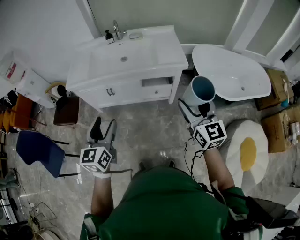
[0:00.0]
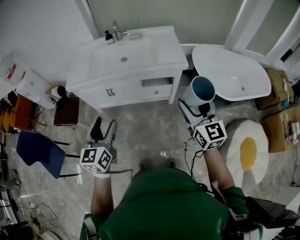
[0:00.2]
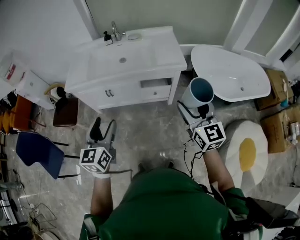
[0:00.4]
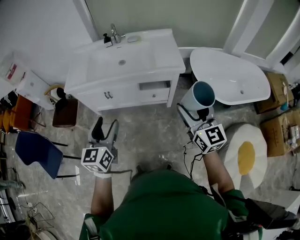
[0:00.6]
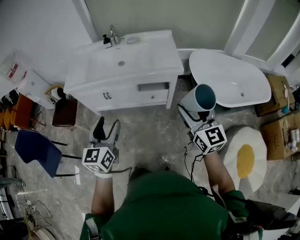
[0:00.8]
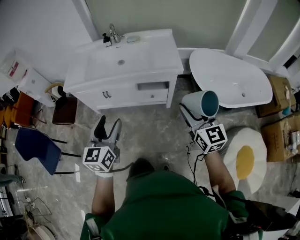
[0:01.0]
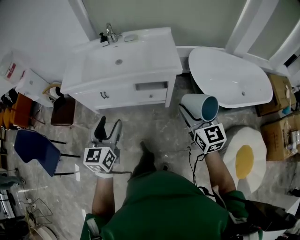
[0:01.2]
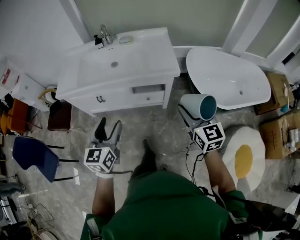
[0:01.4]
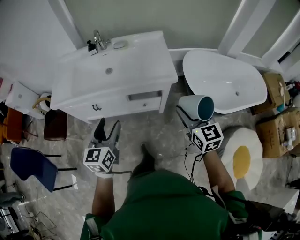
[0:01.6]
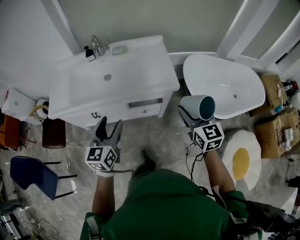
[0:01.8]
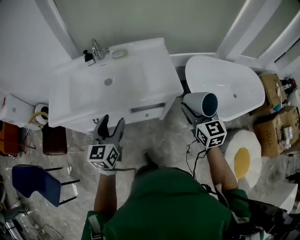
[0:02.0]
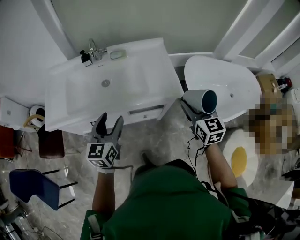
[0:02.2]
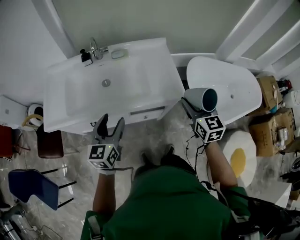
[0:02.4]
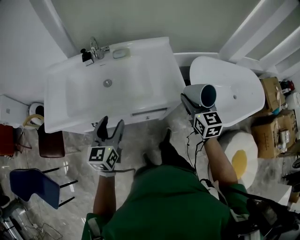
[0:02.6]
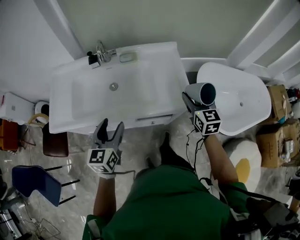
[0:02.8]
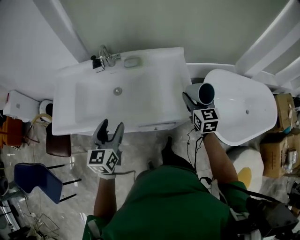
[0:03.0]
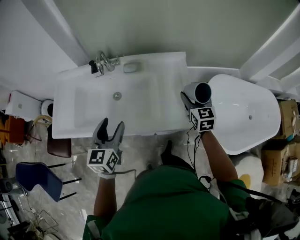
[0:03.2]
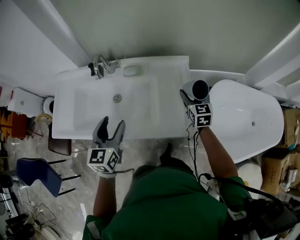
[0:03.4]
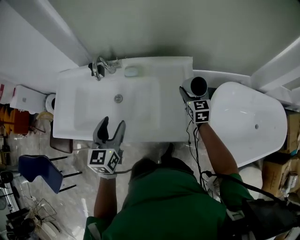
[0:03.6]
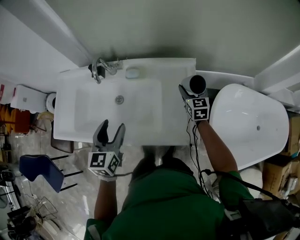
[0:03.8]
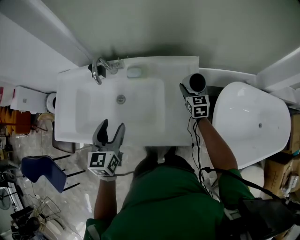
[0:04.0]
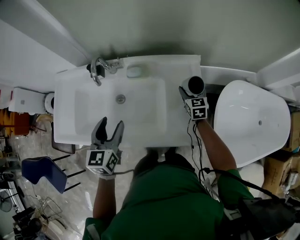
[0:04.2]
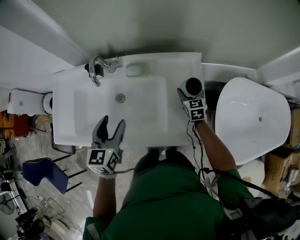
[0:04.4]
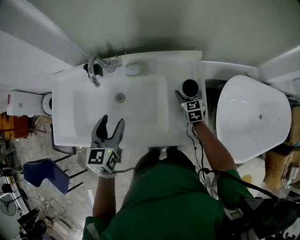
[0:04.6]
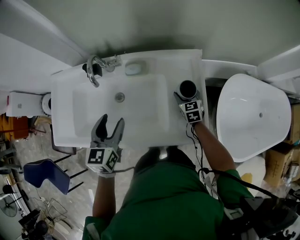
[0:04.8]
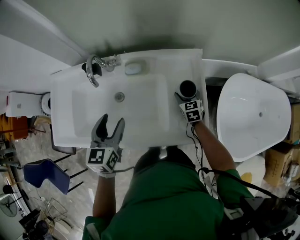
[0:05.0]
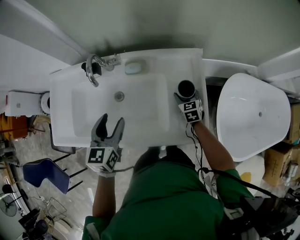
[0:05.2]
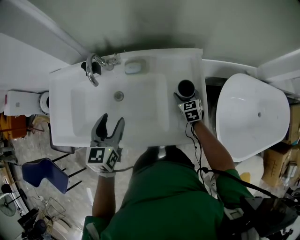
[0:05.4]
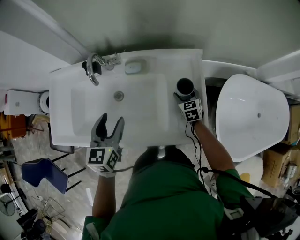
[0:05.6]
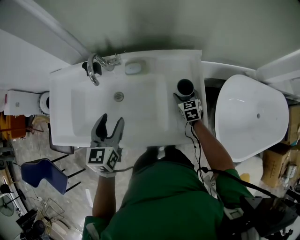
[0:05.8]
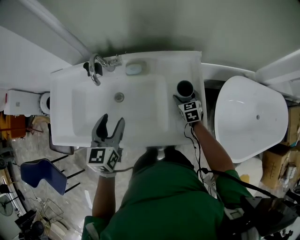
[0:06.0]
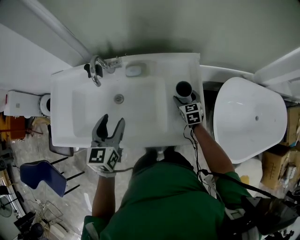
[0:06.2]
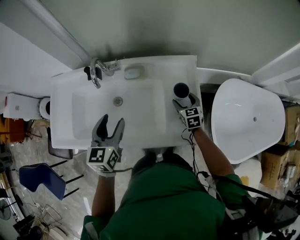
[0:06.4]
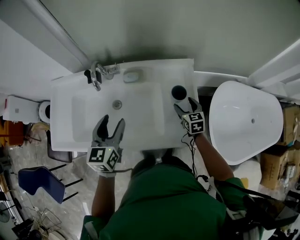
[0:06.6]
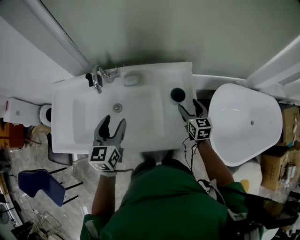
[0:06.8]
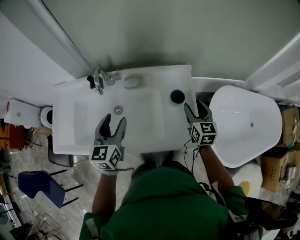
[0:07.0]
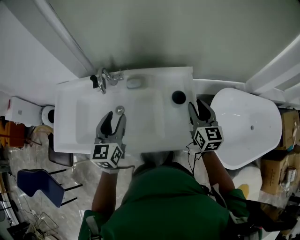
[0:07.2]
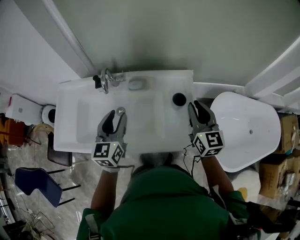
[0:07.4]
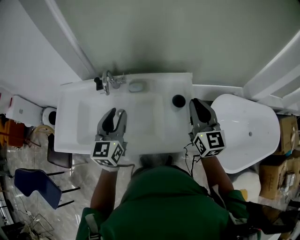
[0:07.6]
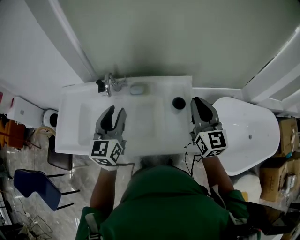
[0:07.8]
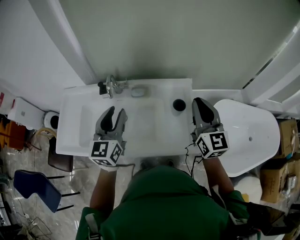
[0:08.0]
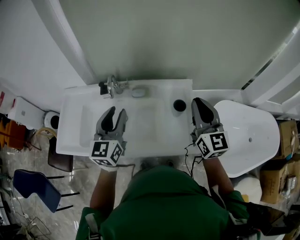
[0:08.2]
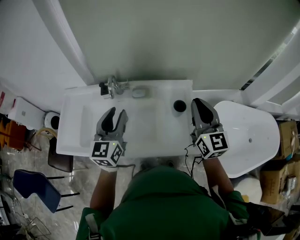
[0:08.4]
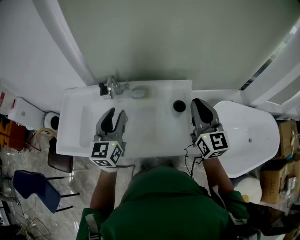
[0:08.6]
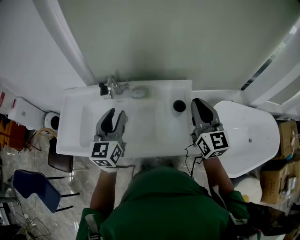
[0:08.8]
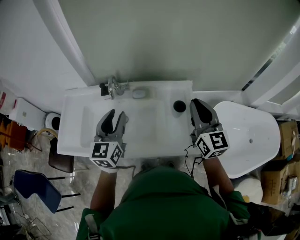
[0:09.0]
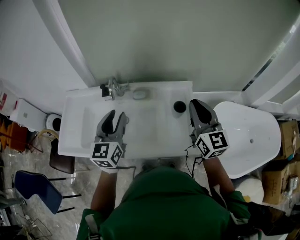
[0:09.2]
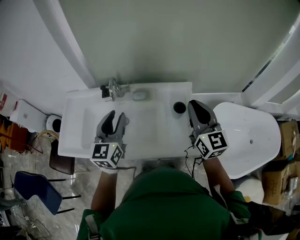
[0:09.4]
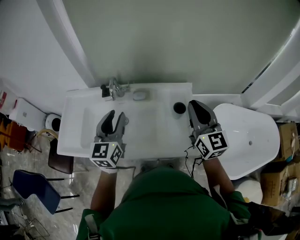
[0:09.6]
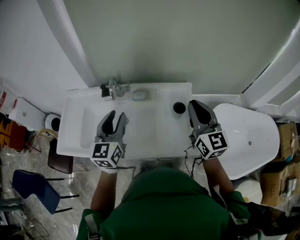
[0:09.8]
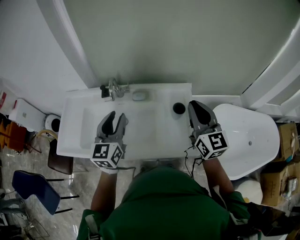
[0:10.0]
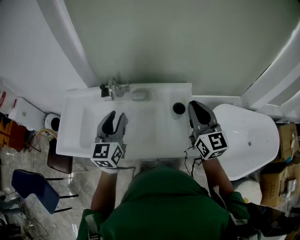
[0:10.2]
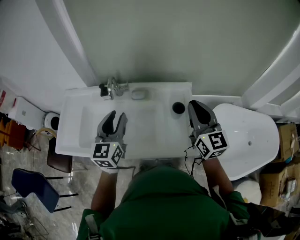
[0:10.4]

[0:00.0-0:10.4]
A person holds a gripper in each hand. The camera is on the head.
0:00.0 to 0:01.4: Both grippers travel together to the right and forward, approximately 15 cm.
0:01.4 to 0:03.0: Both grippers move forward, some 40 cm.
0:03.0 to 0:04.4: The left gripper shifts some 20 cm forward. The right gripper travels forward and downward by some 30 cm.
0:04.4 to 0:06.0: The right gripper changes place by roughly 5 cm.
0:06.0 to 0:07.4: The right gripper goes about 30 cm upward, tips its fingers upward by some 30 degrees, and closes. Meanwhile the left gripper goes some 10 cm upward.
0:07.4 to 0:09.0: Both grippers travel together upward, some 5 cm.
0:09.0 to 0:10.4: Both grippers stay put.

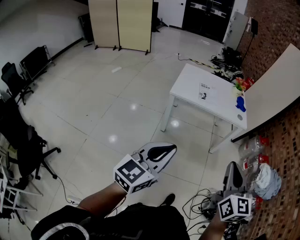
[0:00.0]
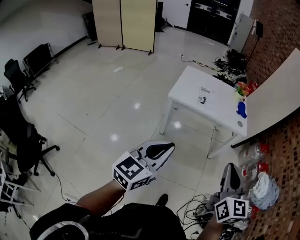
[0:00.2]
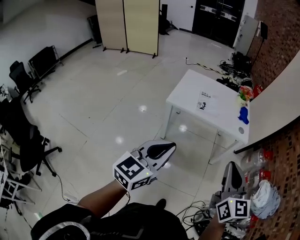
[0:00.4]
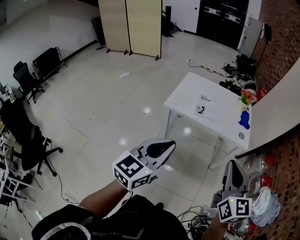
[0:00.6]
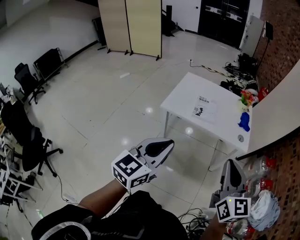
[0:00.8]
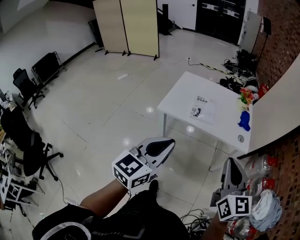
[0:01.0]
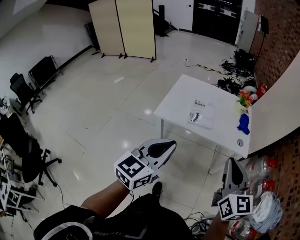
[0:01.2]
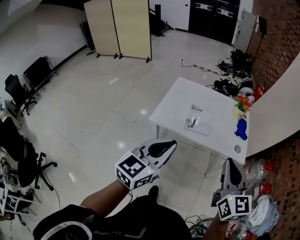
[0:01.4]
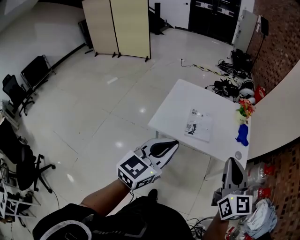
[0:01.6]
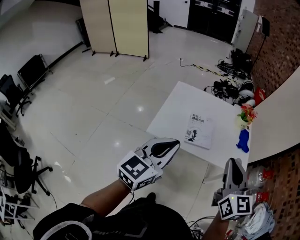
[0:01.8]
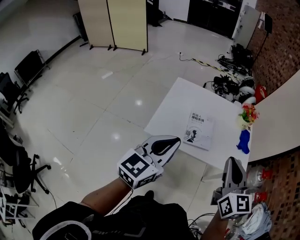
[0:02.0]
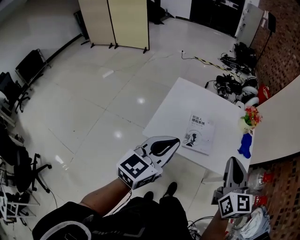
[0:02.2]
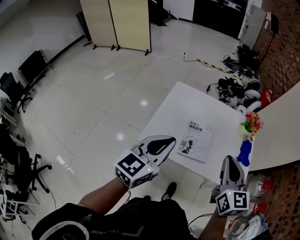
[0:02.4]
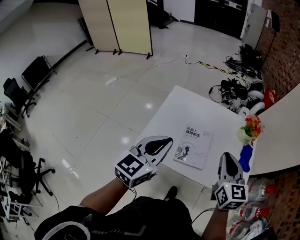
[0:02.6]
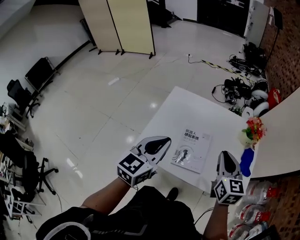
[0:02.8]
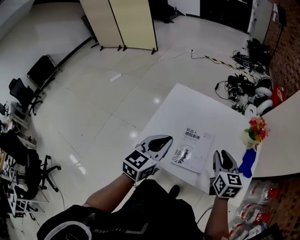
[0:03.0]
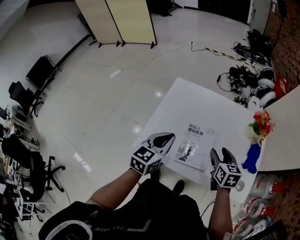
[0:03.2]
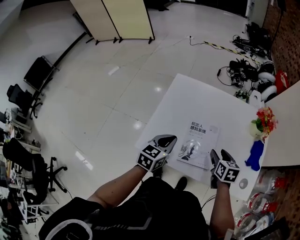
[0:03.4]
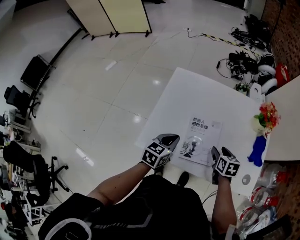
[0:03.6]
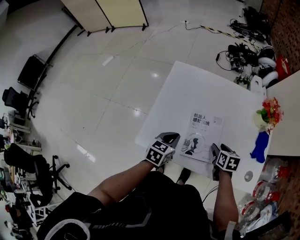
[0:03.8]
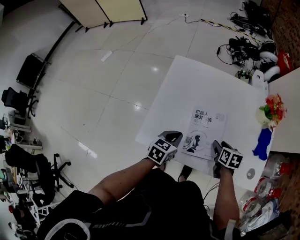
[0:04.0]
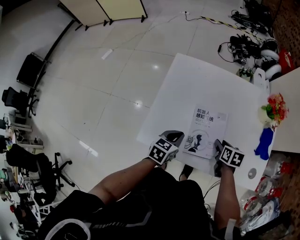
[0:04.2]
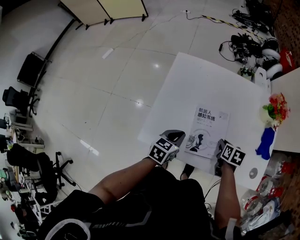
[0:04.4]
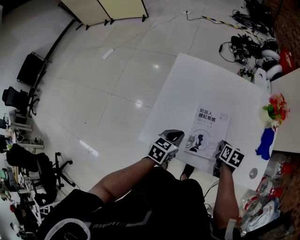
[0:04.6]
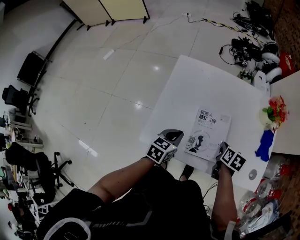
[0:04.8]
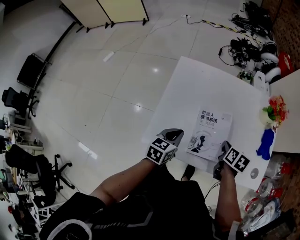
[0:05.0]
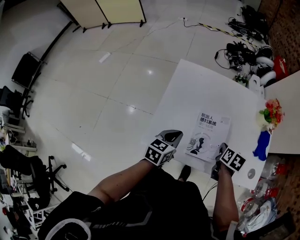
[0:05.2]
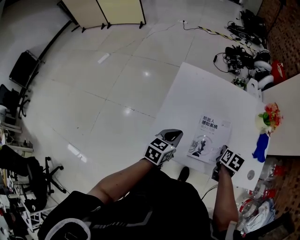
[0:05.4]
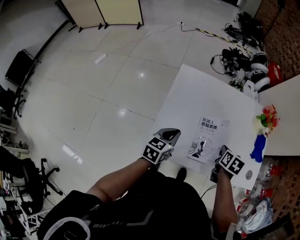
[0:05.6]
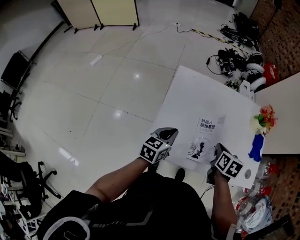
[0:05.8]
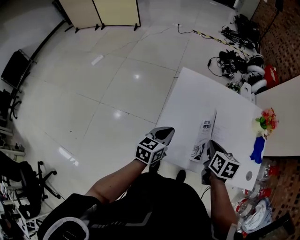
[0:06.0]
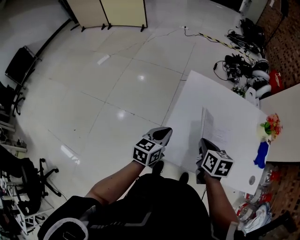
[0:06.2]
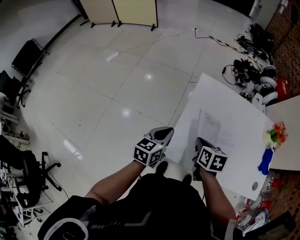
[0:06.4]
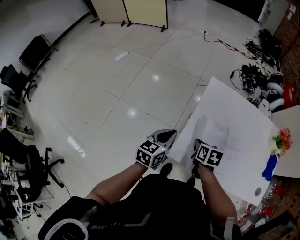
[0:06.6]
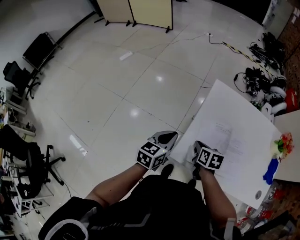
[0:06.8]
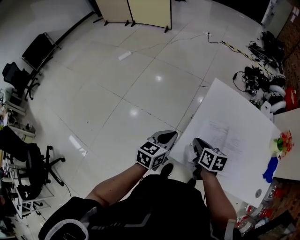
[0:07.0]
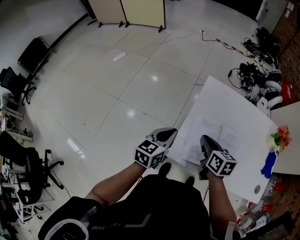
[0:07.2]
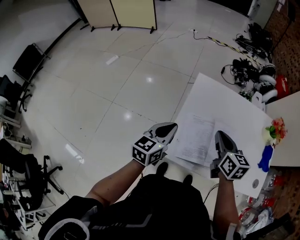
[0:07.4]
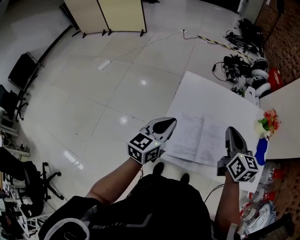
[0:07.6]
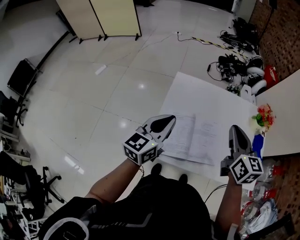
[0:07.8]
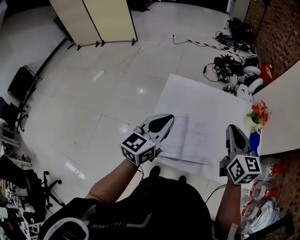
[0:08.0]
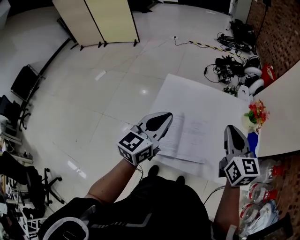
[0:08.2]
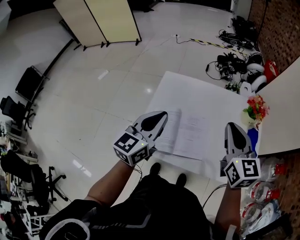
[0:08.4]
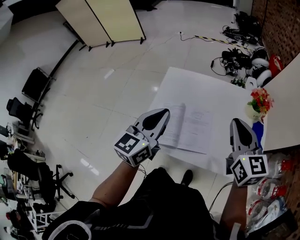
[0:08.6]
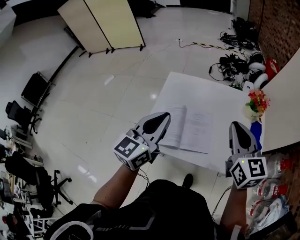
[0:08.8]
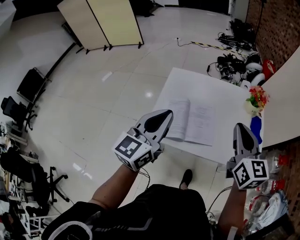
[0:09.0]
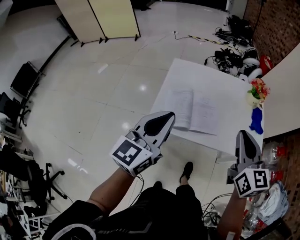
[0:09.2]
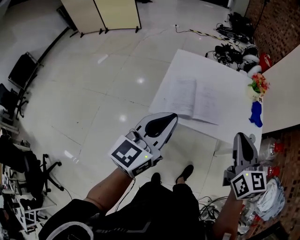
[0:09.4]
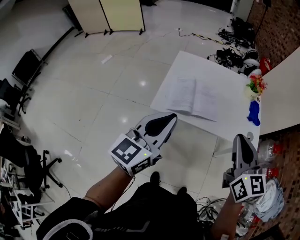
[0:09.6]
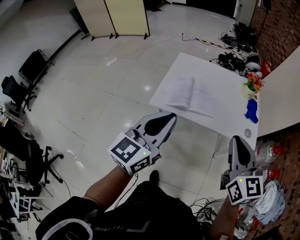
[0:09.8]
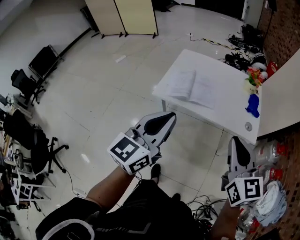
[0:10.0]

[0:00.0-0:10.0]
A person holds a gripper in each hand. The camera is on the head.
0:00.0 to 0:01.4: Both grippers move forward, some 35 cm.
0:01.4 to 0:02.8: The grippers both shift forward by about 35 cm.
0:02.8 to 0:04.2: The two grippers go some 30 cm downward. The left gripper rotates approximately 30 degrees; the right gripper points its fingers approximately 40 degrees further downward, and opens its fingers.
0:04.2 to 0:05.8: The right gripper travels upward and to the left by roughly 15 cm, and closes its fingers; the left gripper travels to the left and upward by approximately 10 cm.
0:05.8 to 0:07.2: The right gripper travels downward and back again, roughly 5 cm each way, and changes its angle by some 30 degrees, while the left gripper ends up about 15 cm from where it was.
0:07.2 to 0:08.6: The grippers both shift to the right and upward by approximately 35 cm. The right gripper turns by approximately 40 degrees, while the left gripper changes its angle by some 20 degrees.
0:08.6 to 0:10.0: Both grippers move backward, roughly 40 cm.

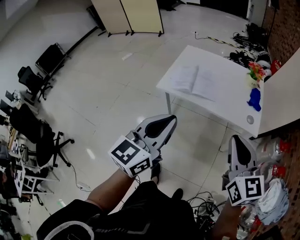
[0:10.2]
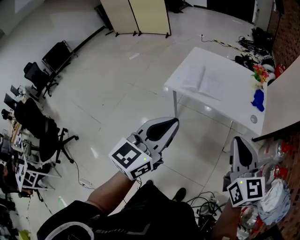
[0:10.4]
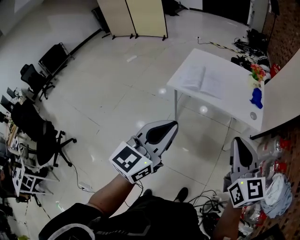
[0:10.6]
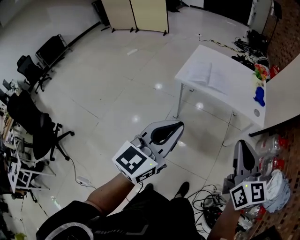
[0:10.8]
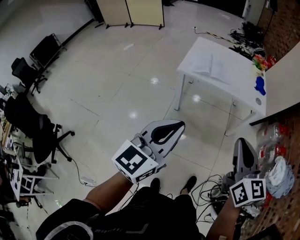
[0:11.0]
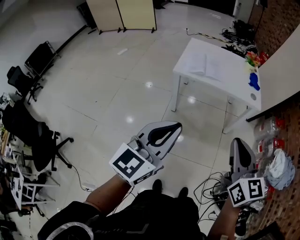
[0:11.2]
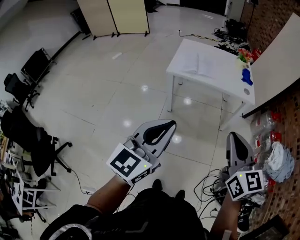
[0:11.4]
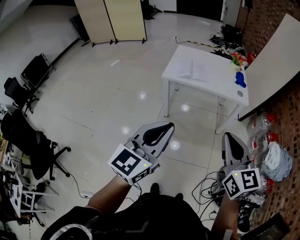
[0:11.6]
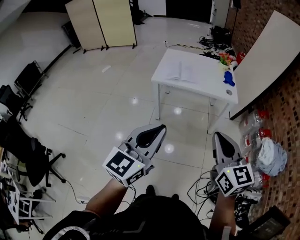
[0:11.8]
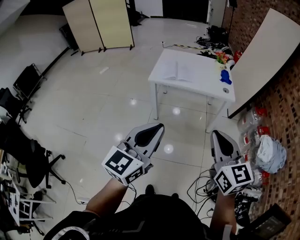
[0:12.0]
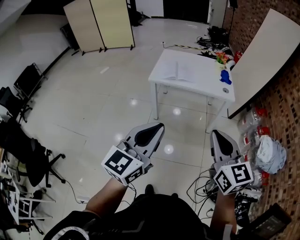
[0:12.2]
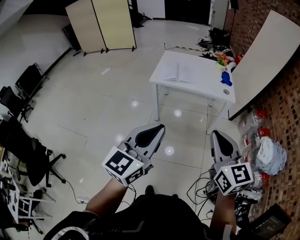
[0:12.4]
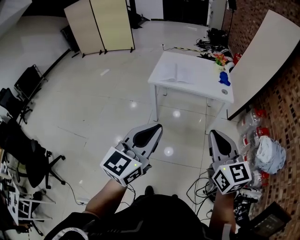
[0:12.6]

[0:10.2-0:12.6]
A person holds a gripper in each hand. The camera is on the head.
0:10.2 to 0:11.4: The two grippers go roughly 30 cm backward and to the left.
0:11.4 to 0:12.6: The left gripper heads to the right and backward, covering approximately 10 cm. Meanwhile the right gripper heads backward and to the right, covering approximately 10 cm.

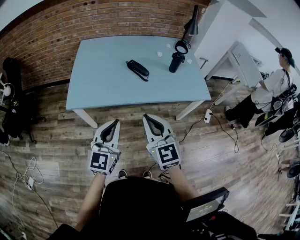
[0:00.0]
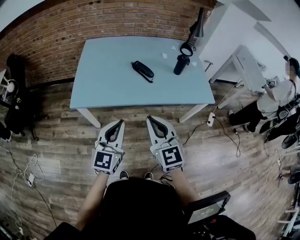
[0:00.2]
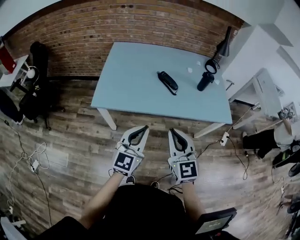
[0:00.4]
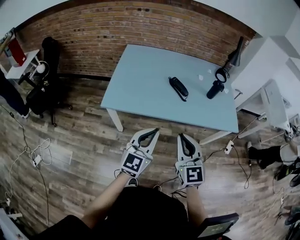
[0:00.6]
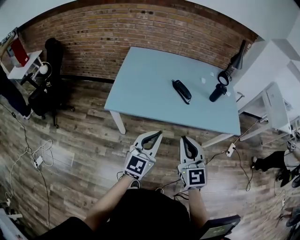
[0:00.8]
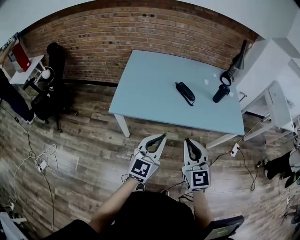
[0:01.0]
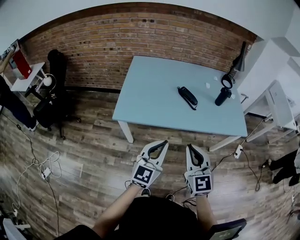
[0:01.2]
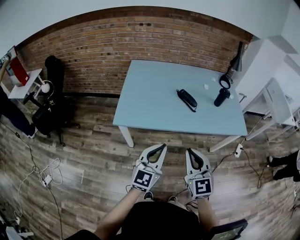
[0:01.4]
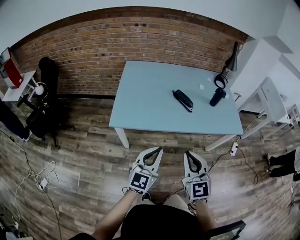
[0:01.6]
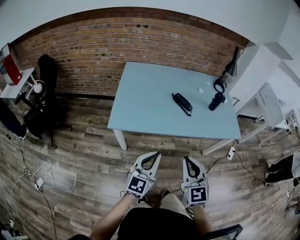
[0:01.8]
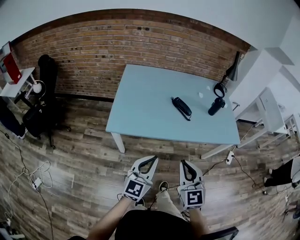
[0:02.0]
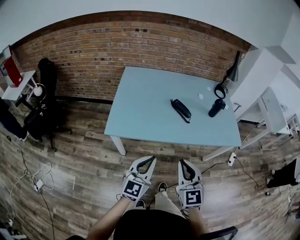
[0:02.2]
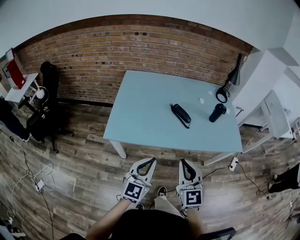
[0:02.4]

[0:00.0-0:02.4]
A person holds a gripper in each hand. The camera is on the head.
0:00.0 to 0:01.2: The right gripper moves to the left, some 5 cm.
0:01.2 to 0:02.4: Both grippers move forward, about 5 cm.
